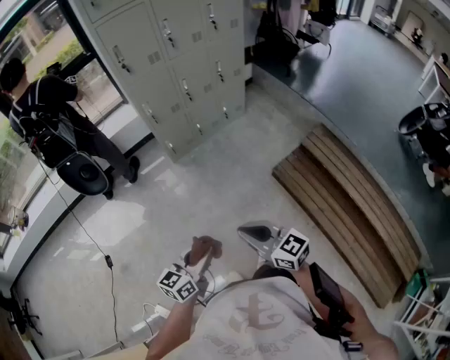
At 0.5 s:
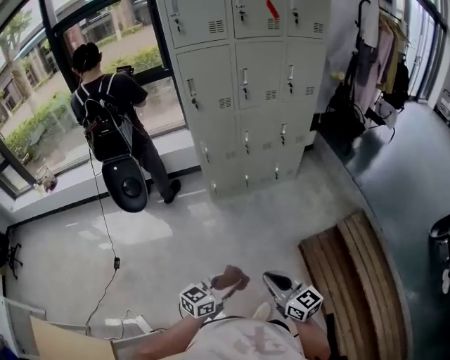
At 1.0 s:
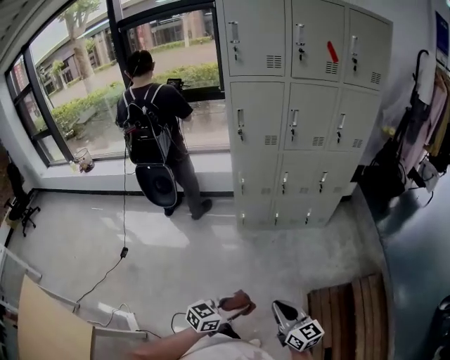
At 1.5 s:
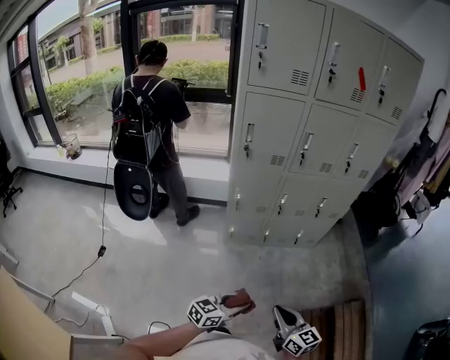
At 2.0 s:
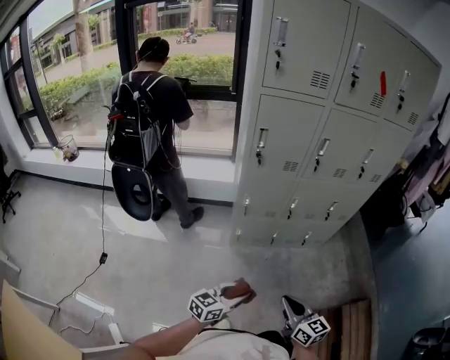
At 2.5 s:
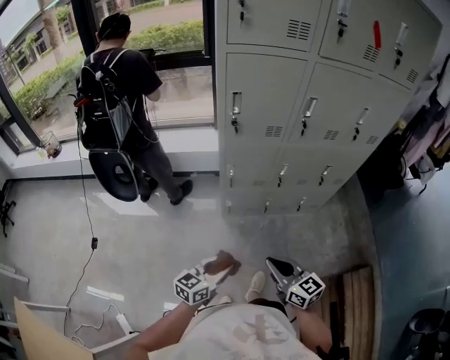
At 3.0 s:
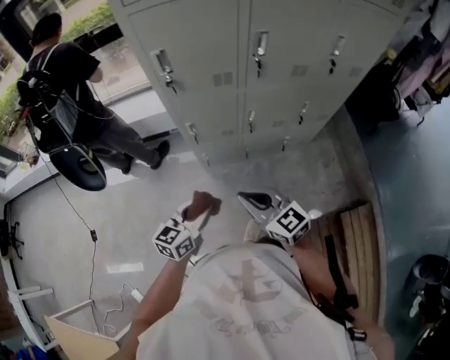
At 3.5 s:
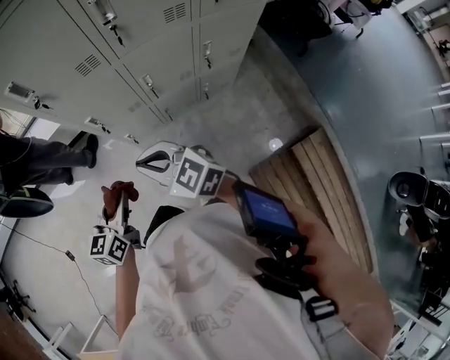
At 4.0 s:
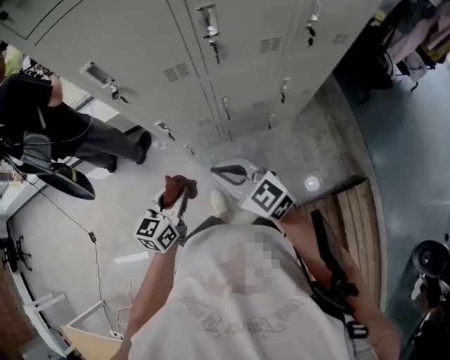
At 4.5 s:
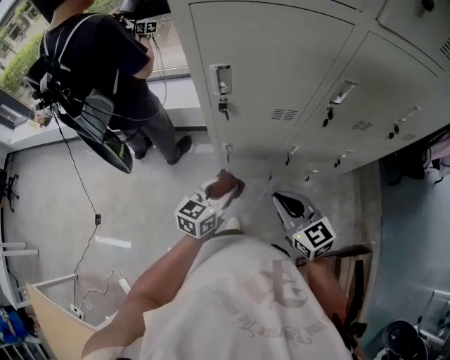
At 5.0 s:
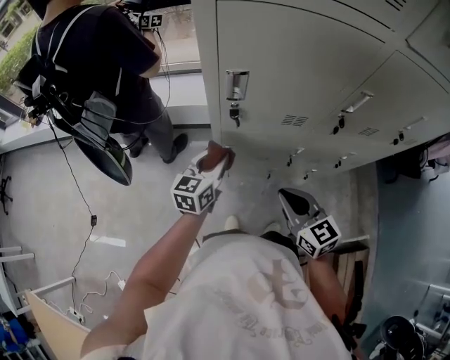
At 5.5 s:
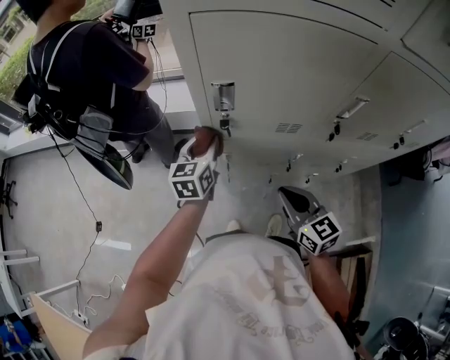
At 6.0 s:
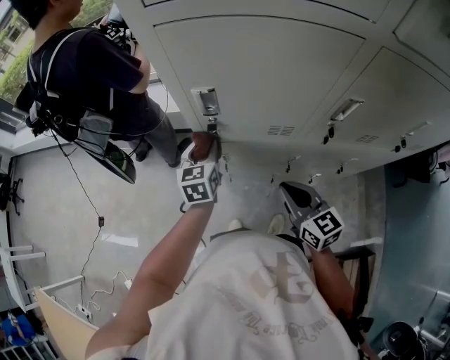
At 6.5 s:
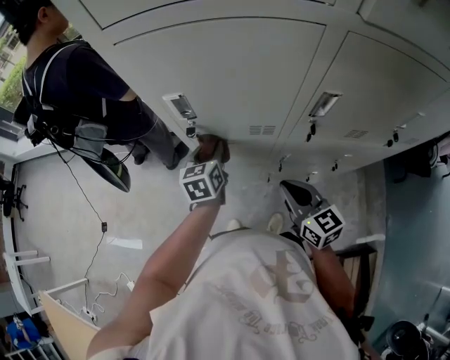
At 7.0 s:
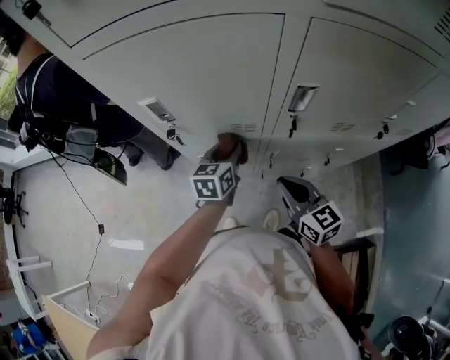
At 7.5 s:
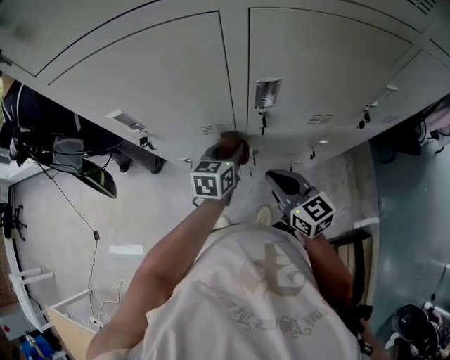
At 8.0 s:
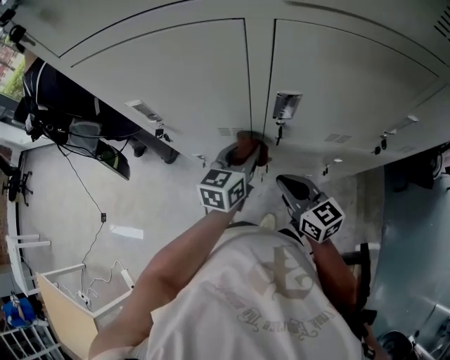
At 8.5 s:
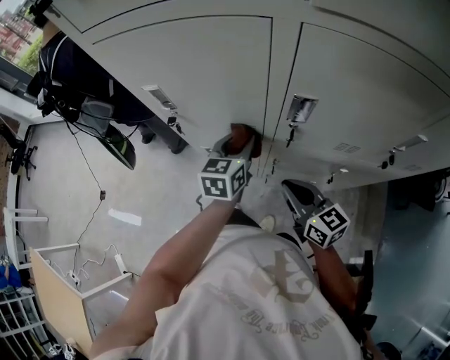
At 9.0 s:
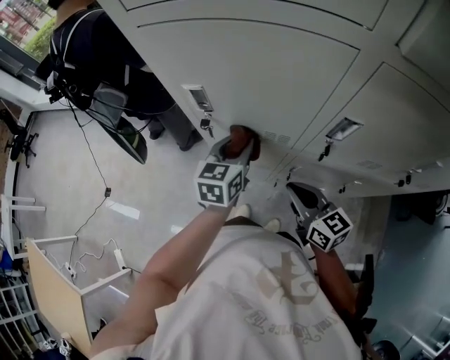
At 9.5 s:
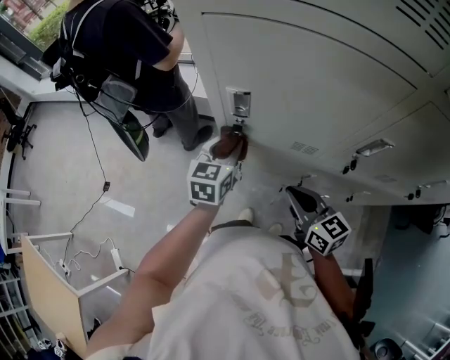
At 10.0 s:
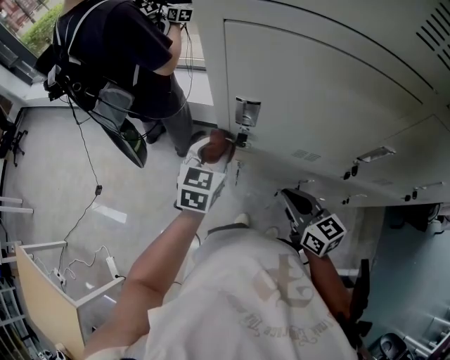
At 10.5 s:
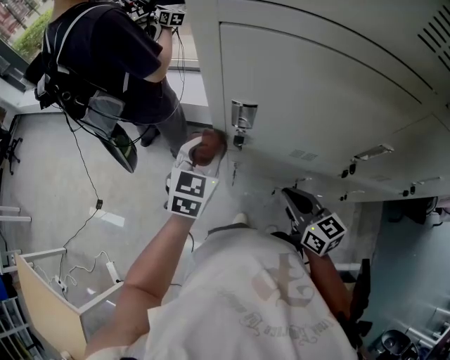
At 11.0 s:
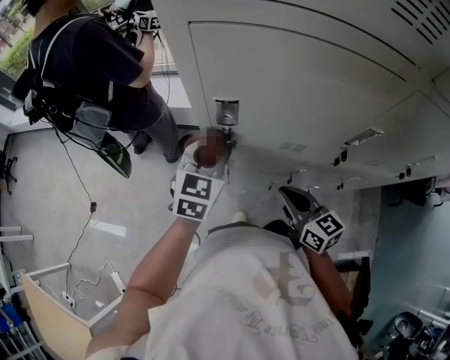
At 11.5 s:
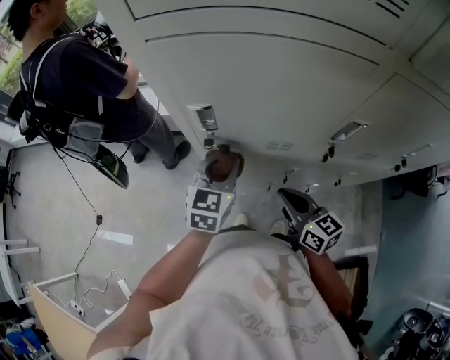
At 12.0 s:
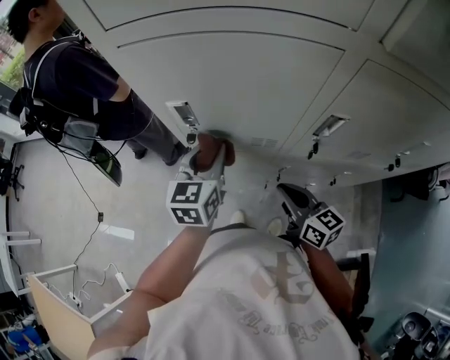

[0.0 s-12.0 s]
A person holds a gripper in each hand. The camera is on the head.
0.0 to 2.0 s: The grippers both shift forward by roughly 35 cm.
2.0 to 4.0 s: Both grippers travel together forward, roughly 30 cm. The right gripper rotates approximately 30 degrees.
4.0 to 6.0 s: The right gripper moves forward, some 15 cm. Meanwhile the left gripper shifts approximately 30 cm forward, and turns by approximately 30 degrees.
6.0 to 8.0 s: The left gripper goes about 25 cm to the right, and swivels some 20 degrees. The right gripper goes roughly 15 cm to the right.
8.0 to 10.0 s: The right gripper shifts approximately 15 cm to the left. The left gripper is displaced to the left by approximately 25 cm, and turns by about 20 degrees.
10.0 to 12.0 s: The two grippers go about 10 cm to the right.

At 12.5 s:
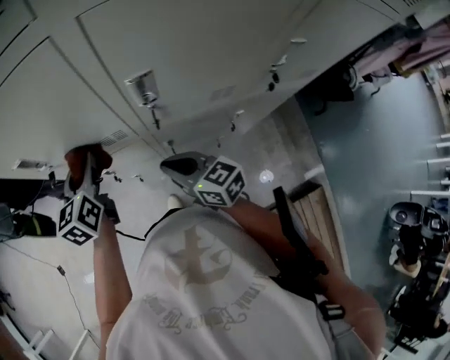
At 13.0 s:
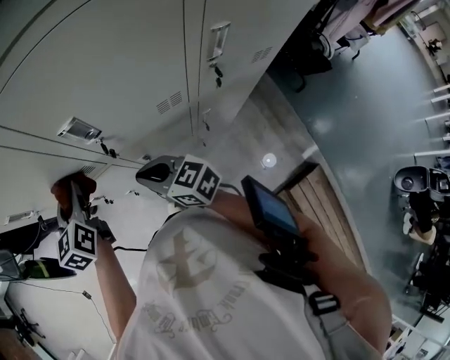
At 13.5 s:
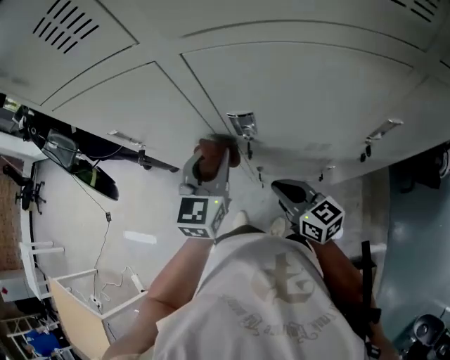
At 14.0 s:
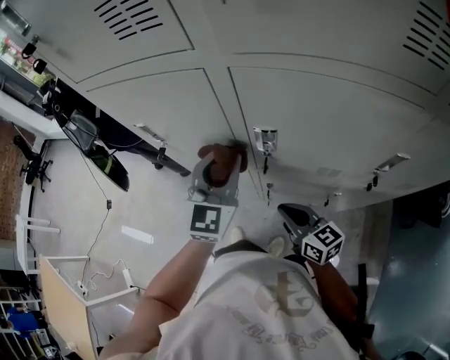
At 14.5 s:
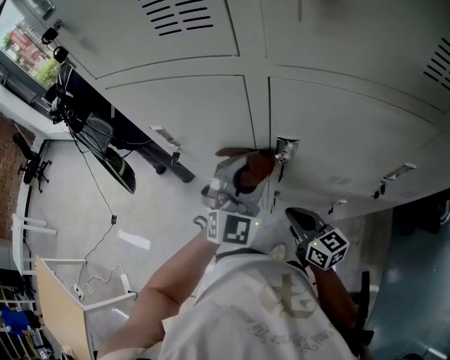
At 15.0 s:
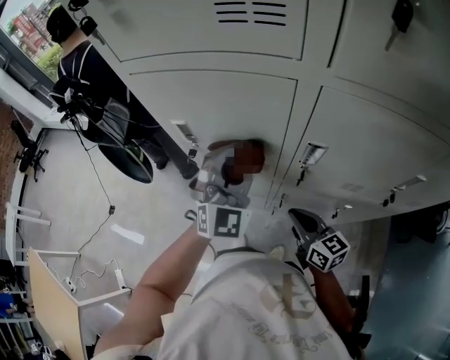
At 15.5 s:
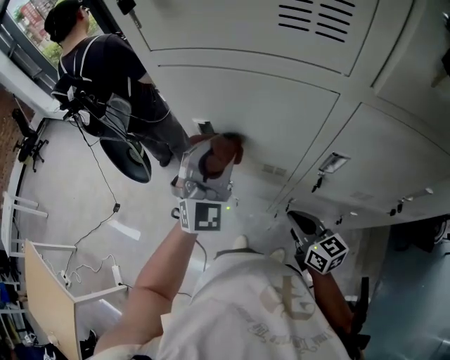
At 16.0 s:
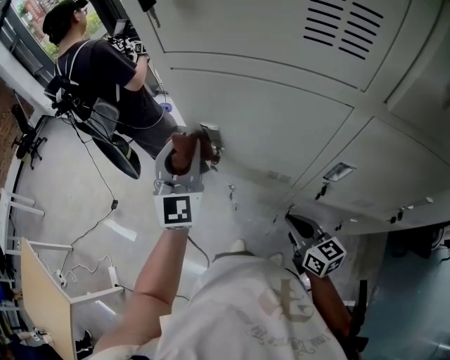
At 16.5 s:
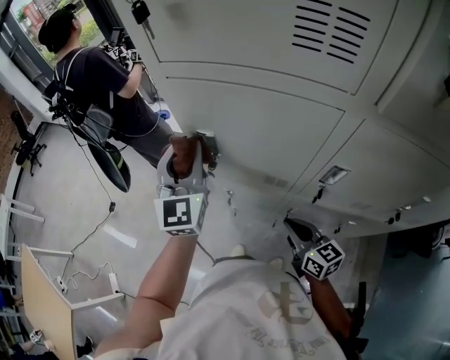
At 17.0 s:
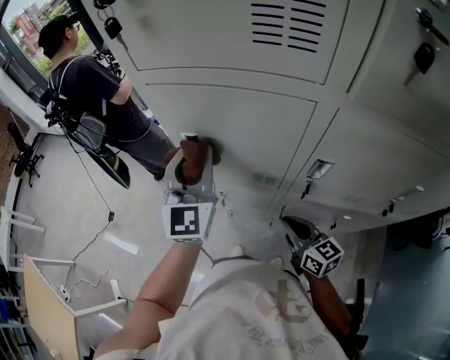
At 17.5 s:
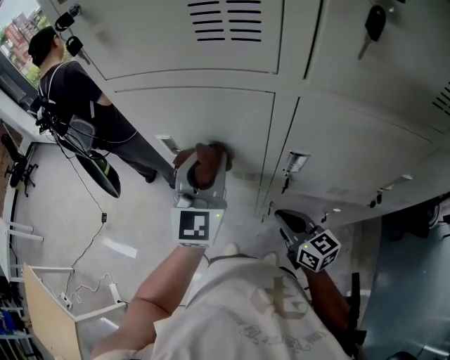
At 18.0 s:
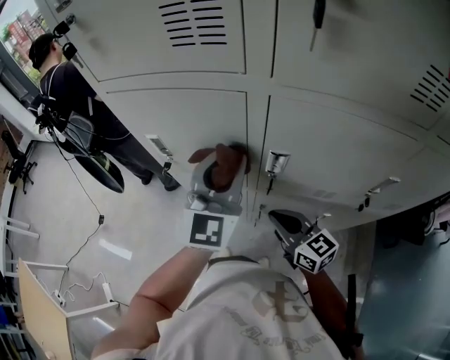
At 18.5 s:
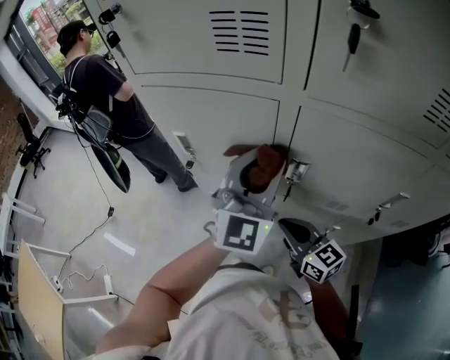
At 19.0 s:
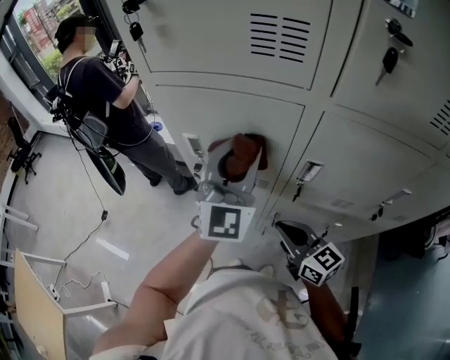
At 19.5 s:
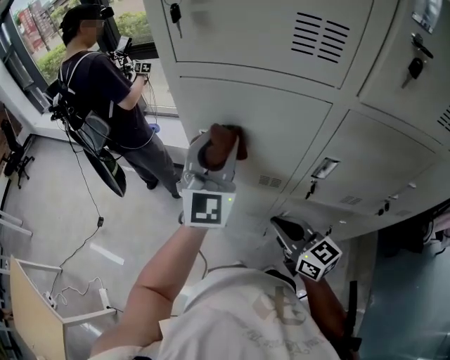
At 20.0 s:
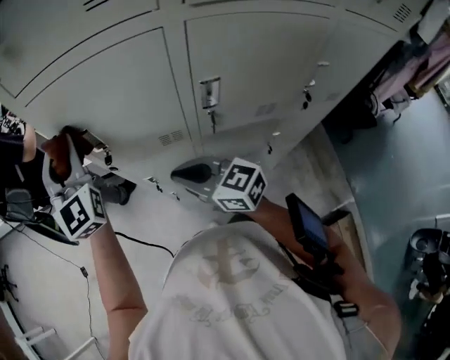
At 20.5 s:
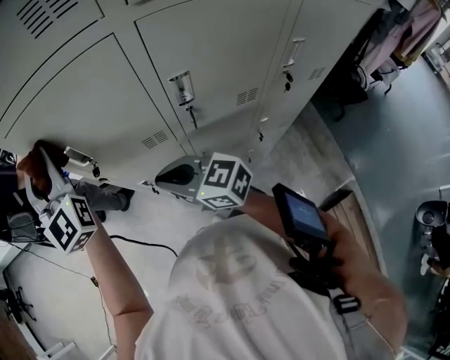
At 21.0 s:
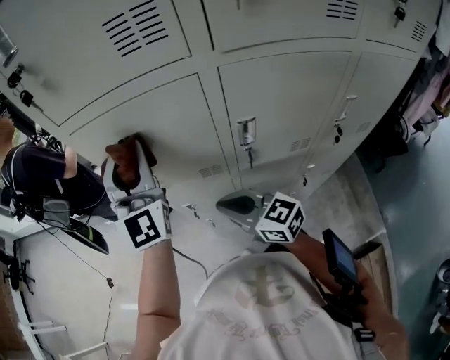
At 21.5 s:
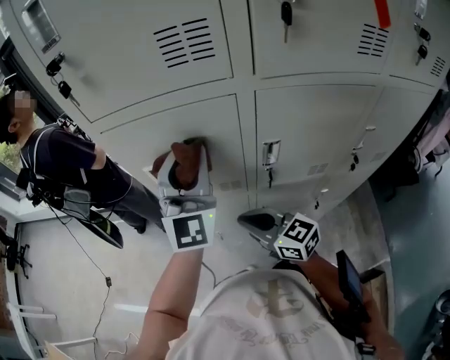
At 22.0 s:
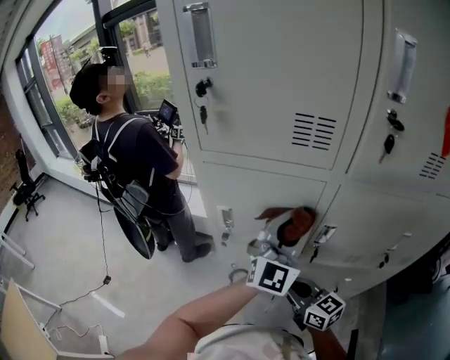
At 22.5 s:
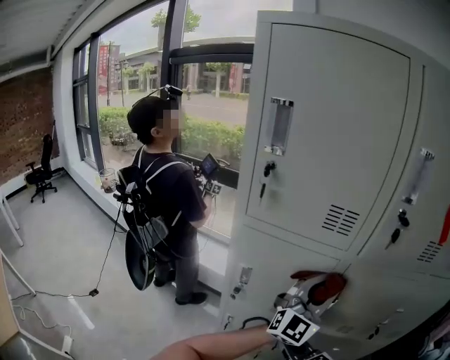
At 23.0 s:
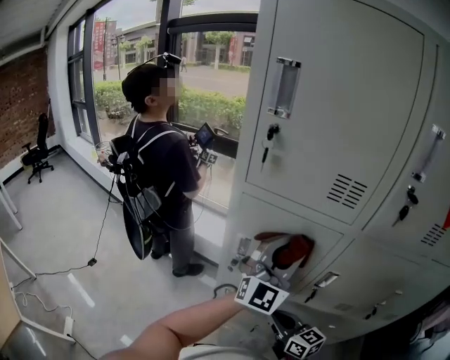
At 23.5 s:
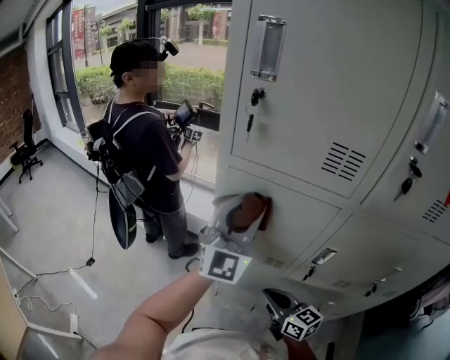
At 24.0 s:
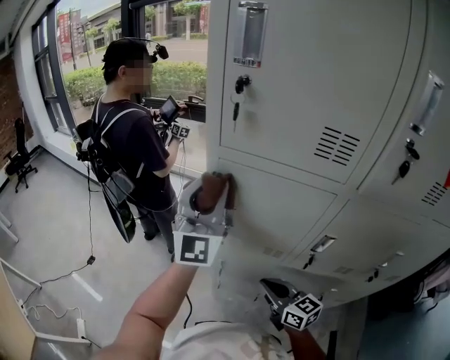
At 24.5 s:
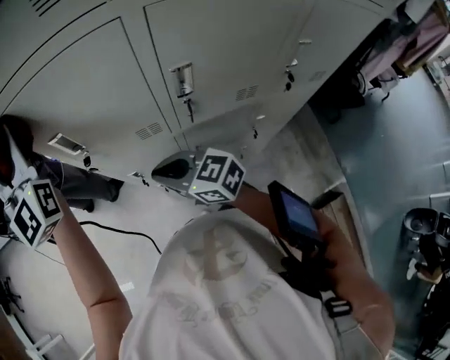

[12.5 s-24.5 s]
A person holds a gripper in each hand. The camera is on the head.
12.5 to 14.5 s: The left gripper is displaced to the right, upward and backward by roughly 20 cm, and rolls clockwise, seen from behind, by some 50 degrees. The right gripper is displaced to the right by about 10 cm.
14.5 to 16.5 s: The right gripper moves to the left, about 10 cm; the left gripper moves to the left and forward, approximately 30 cm, and turns by some 40 degrees.
16.5 to 18.5 s: The left gripper moves to the right and backward, roughly 25 cm, and turns by roughly 30 degrees. The right gripper travels upward and to the right by roughly 10 cm.
18.5 to 20.5 s: The right gripper moves left and right over roughly 15 cm, changing direction 2 times; the left gripper heads to the left and forward, covering approximately 25 cm.
20.5 to 22.5 s: The right gripper goes about 5 cm to the right. Meanwhile the left gripper heads to the right and backward, covering roughly 30 cm, and turns by approximately 30 degrees.
22.5 to 24.5 s: The right gripper heads to the left and forward, covering some 35 cm; the left gripper travels to the left and forward by roughly 60 cm, and swivels some 30 degrees.

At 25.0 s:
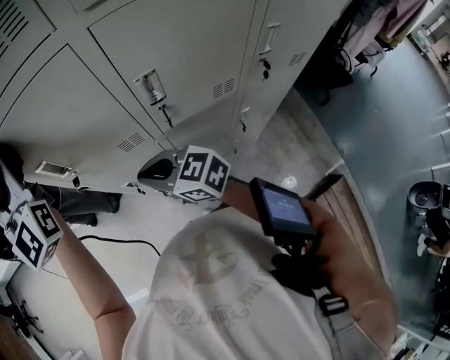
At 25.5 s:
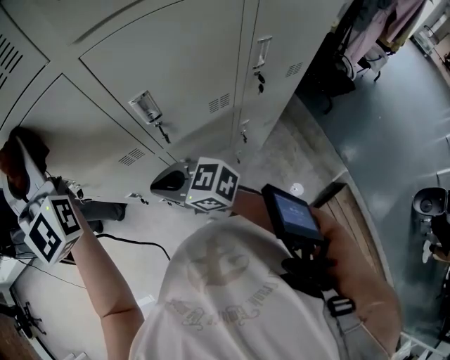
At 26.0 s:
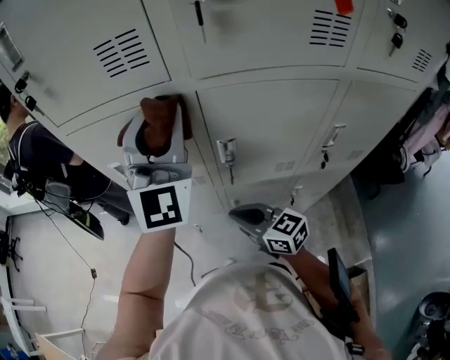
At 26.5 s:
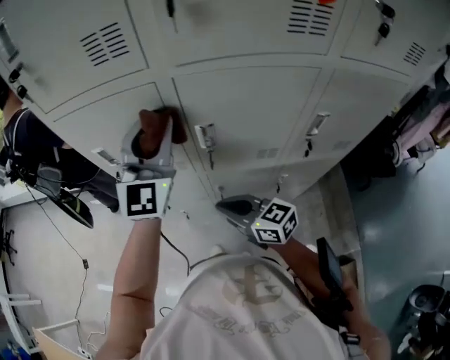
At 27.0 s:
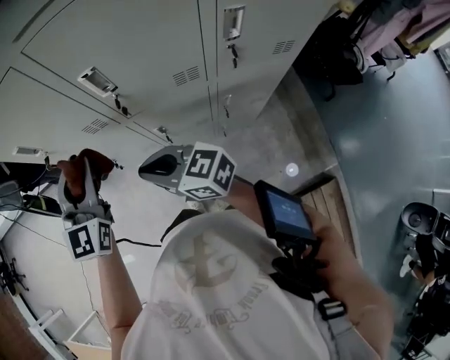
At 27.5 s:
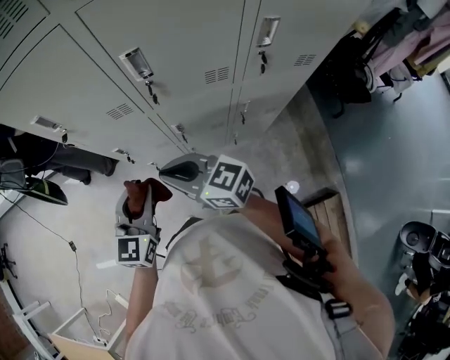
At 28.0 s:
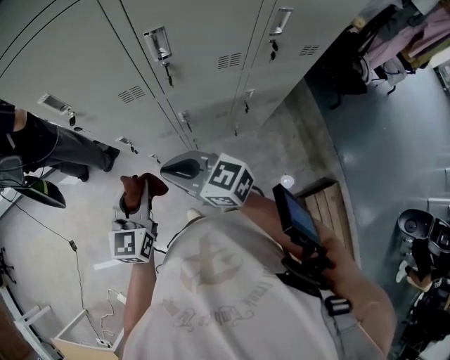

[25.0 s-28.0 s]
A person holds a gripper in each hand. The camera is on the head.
25.0 to 26.5 s: The left gripper heads to the right and backward, covering approximately 20 cm, and swivels approximately 20 degrees; the right gripper goes roughly 15 cm to the right and backward.
26.5 to 28.0 s: The right gripper moves to the left and backward, approximately 15 cm, while the left gripper goes approximately 35 cm downward, backward and to the left, and points its fingers some 30 degrees further downward.
